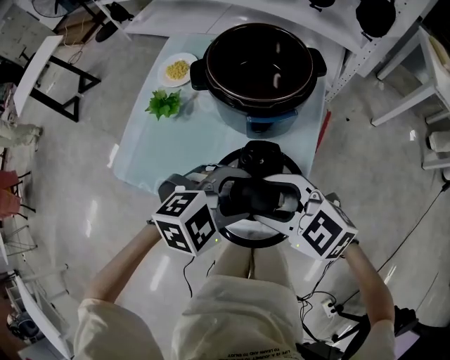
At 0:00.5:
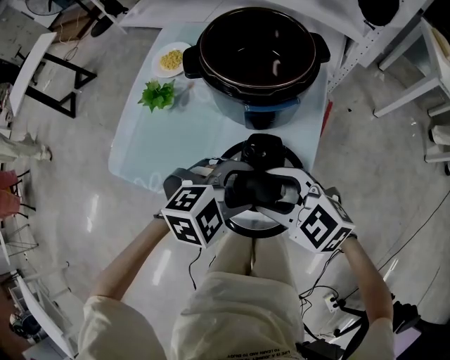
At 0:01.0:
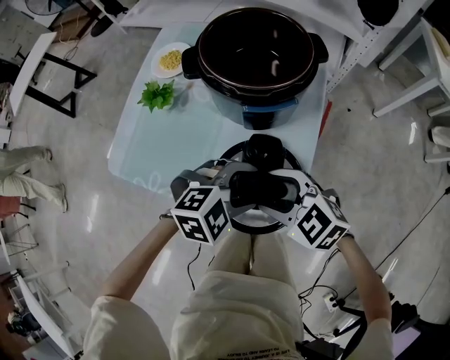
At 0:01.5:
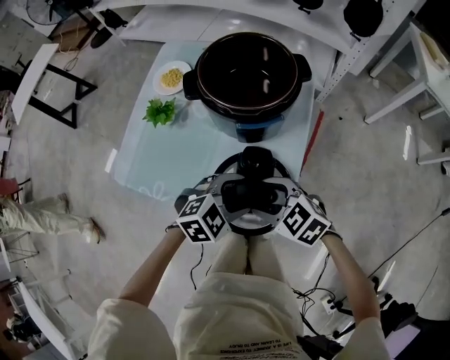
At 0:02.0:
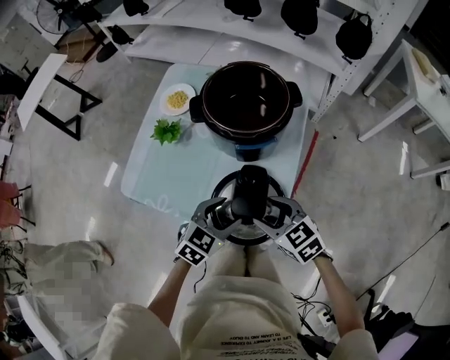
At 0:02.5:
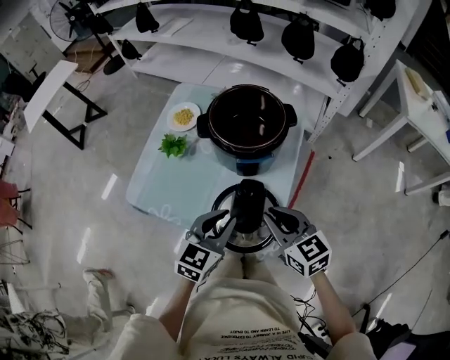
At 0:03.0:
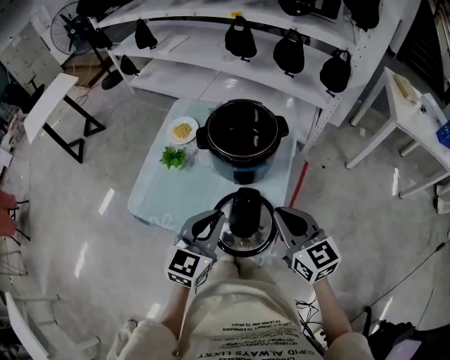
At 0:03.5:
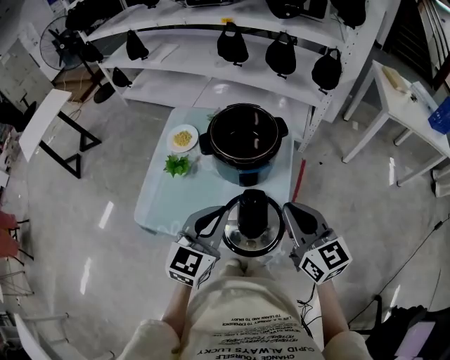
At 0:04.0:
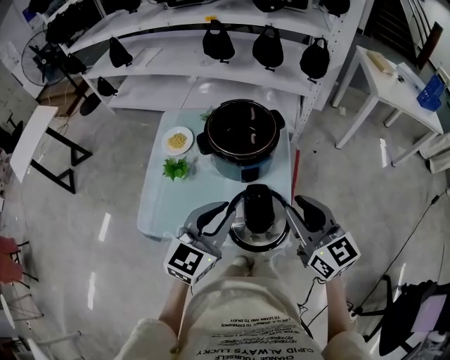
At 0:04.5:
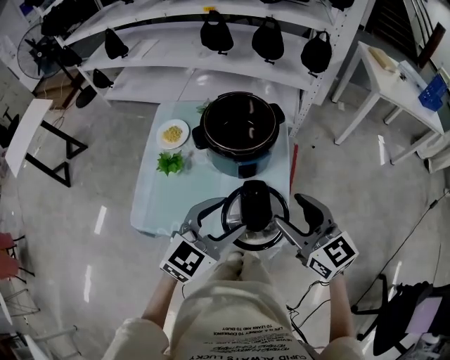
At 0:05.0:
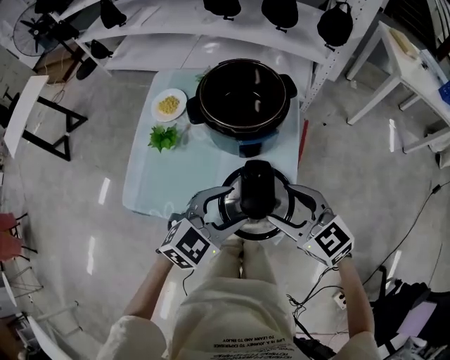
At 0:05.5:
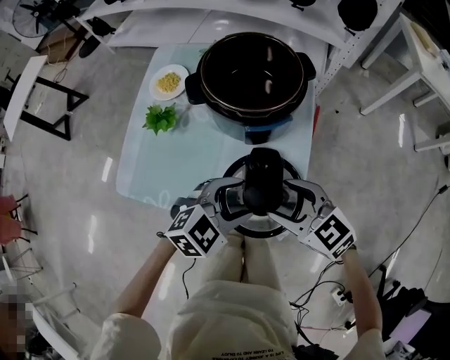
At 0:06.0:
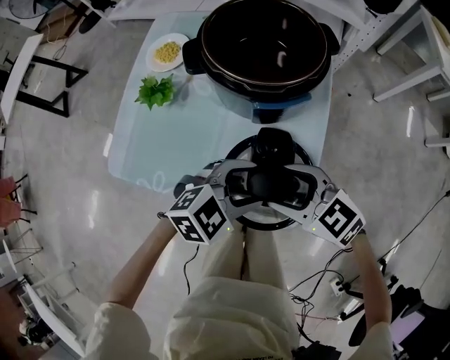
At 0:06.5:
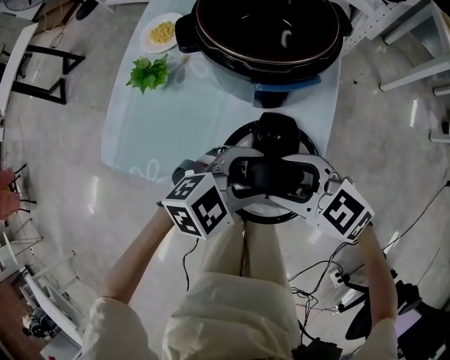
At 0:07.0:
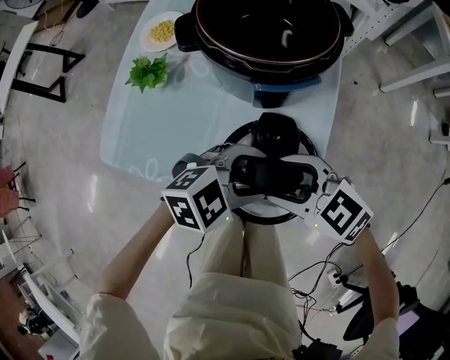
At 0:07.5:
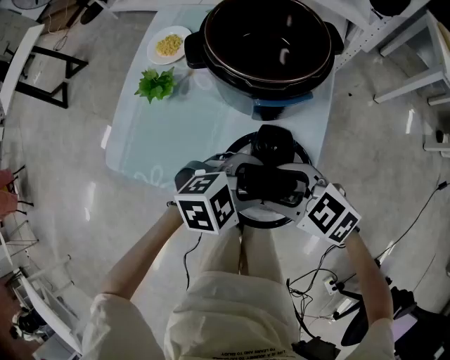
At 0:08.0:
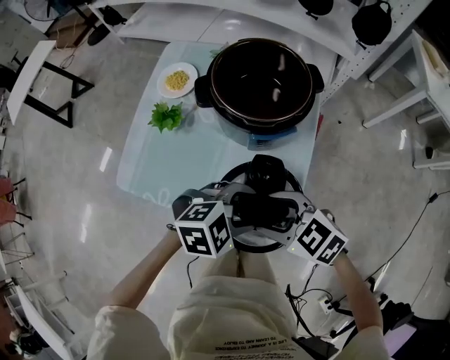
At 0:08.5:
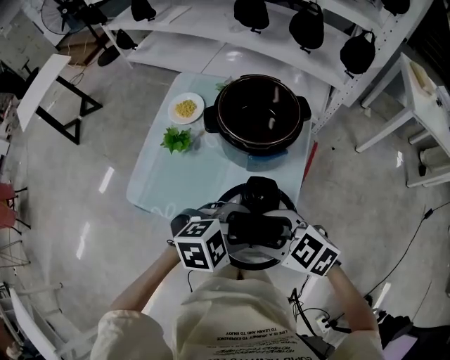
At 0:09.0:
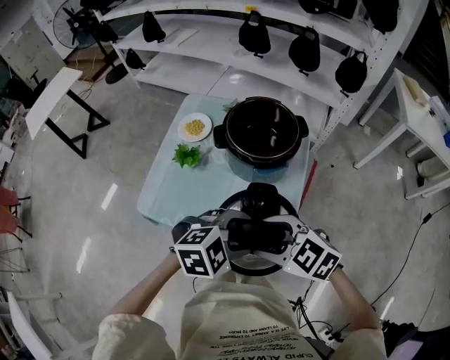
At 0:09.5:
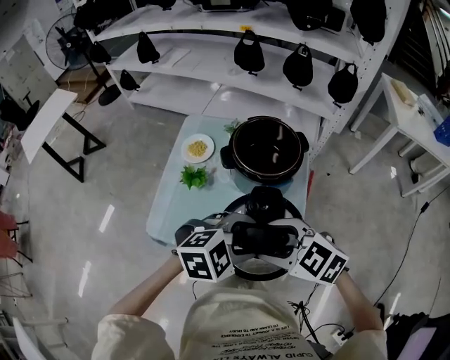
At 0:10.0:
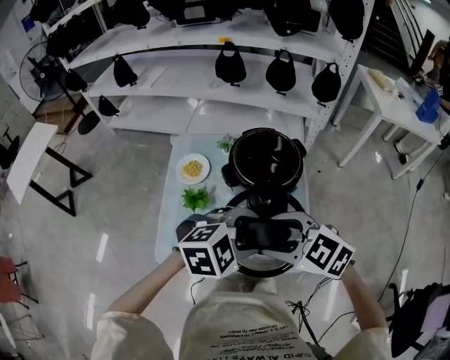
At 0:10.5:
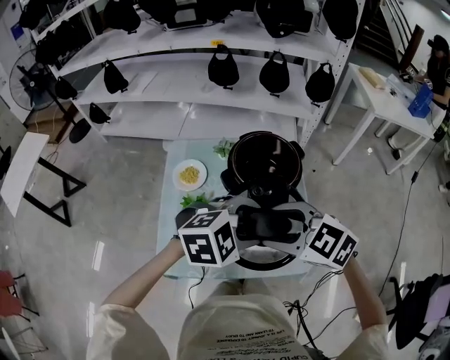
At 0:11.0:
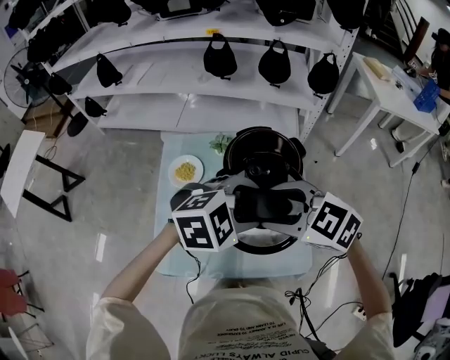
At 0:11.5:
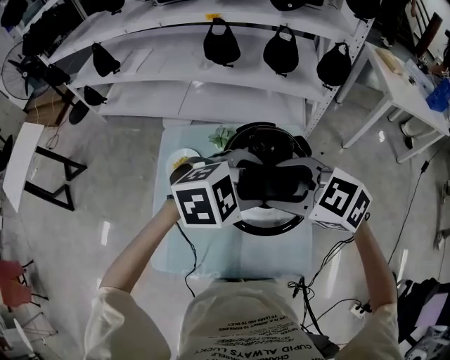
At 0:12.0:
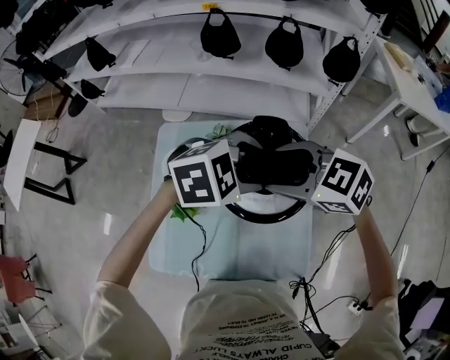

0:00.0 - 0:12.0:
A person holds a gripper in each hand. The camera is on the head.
0:00.0 - 0:02.0: Both grippers travel together downward, roughly 5 cm. The right gripper rotates about 30 degrees; the left gripper swivels about 40 degrees.
0:02.0 - 0:04.0: The two grippers go roughly 20 cm upward. The right gripper rotates approximately 40 degrees, and closes its fingers. The left gripper turns by roughly 30 degrees, and closes up.
0:04.0 - 0:06.0: Both grippers move downward, some 20 cm. The right gripper rotates about 50 degrees, and opens its fingers. The left gripper rotates approximately 40 degrees, and opens its fingers.
0:06.0 - 0:08.0: The grippers make only small movements.
0:08.0 - 0:10.0: Both grippers travel together upward, roughly 15 cm.
0:10.0 - 0:12.0: The left gripper ends up roughly 25 cm from where it was; the right gripper ends up about 25 cm from where it was.

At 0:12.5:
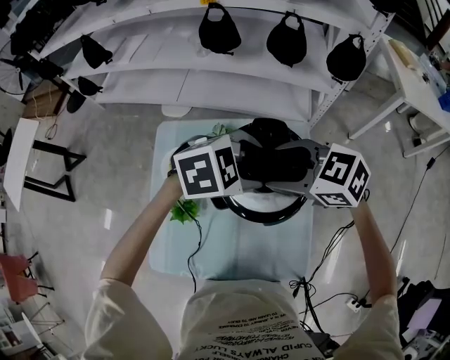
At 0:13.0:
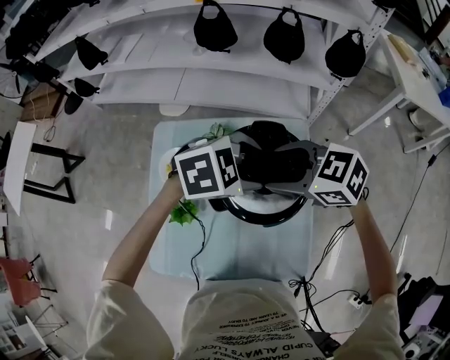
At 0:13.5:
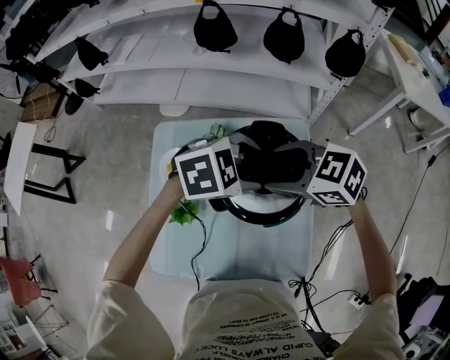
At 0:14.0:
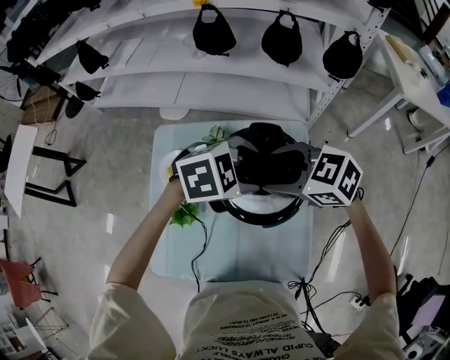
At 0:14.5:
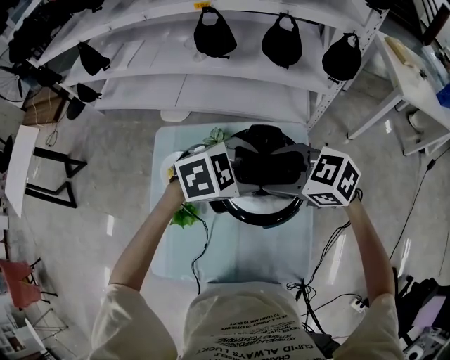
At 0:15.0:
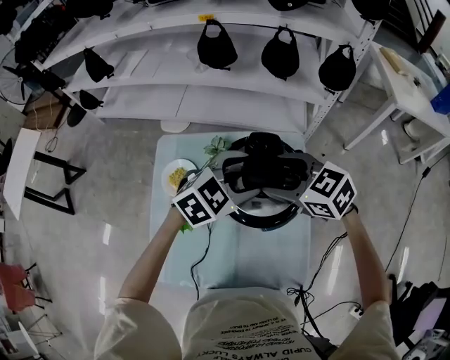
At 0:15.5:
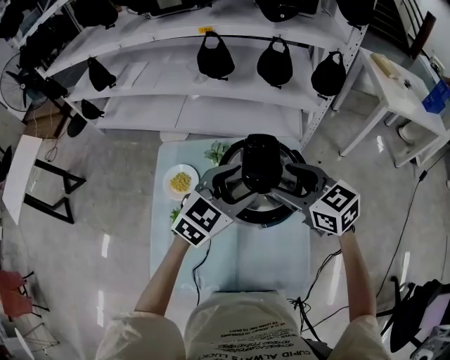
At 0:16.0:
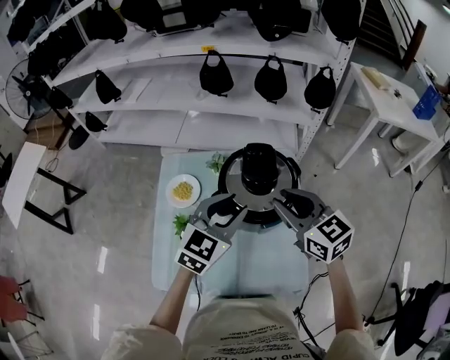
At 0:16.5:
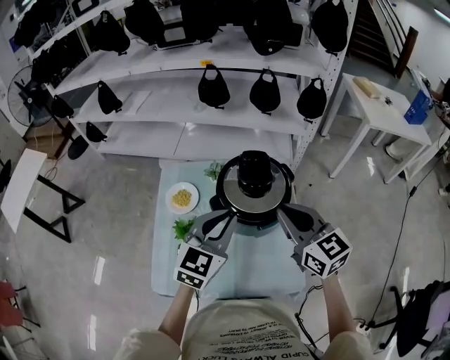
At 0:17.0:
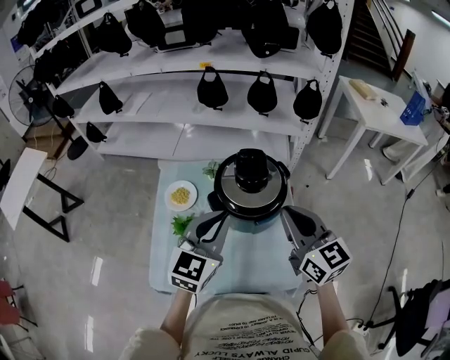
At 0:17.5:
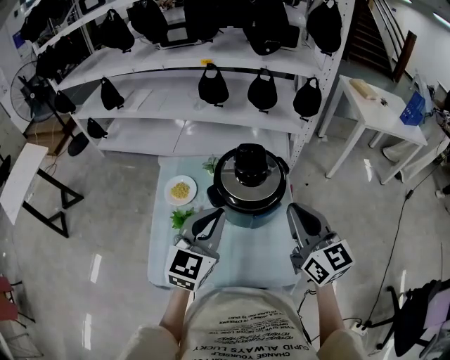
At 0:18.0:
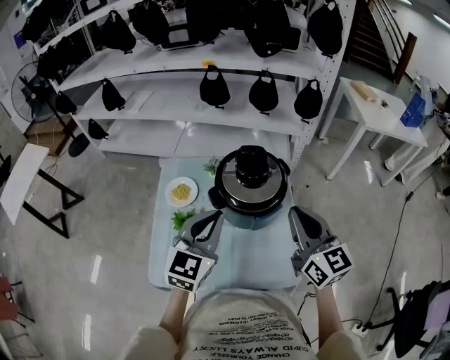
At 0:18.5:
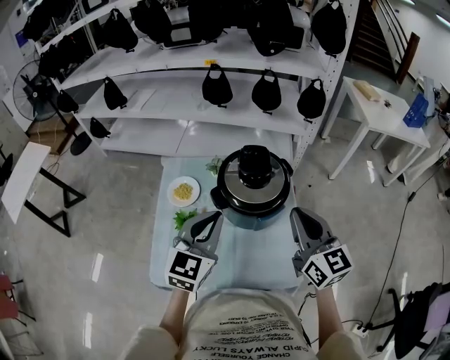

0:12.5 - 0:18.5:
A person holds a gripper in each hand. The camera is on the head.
0:12.5 - 0:14.5: There are only small adjustments of the grippers.
0:14.5 - 0:16.5: The left gripper moves approximately 15 cm, tilts its fingers roughly 30 degrees upward, and closes. The right gripper changes place by approximately 15 cm, changes its angle by some 50 degrees, and closes up.
0:16.5 - 0:18.5: The right gripper changes place by approximately 5 cm.

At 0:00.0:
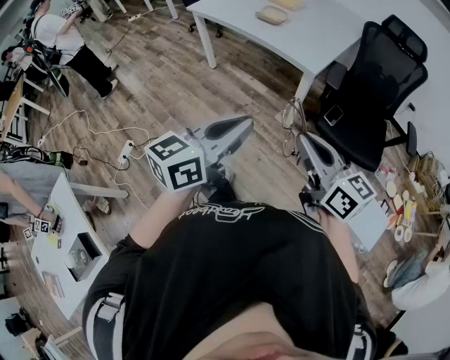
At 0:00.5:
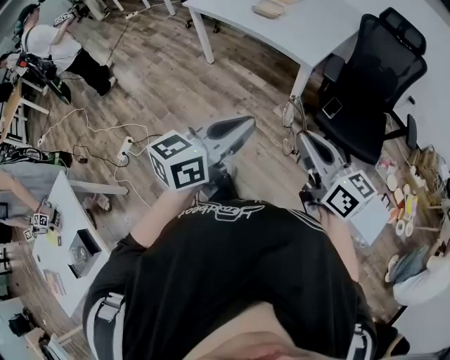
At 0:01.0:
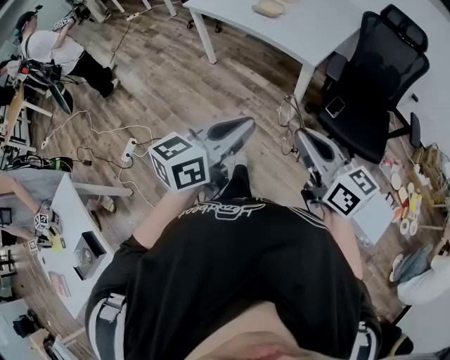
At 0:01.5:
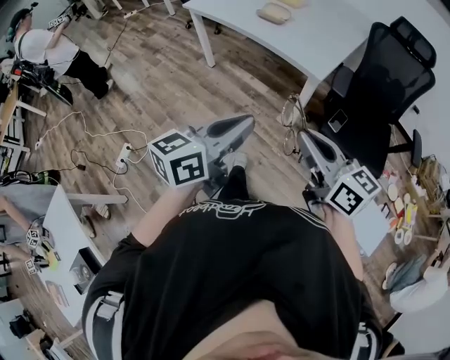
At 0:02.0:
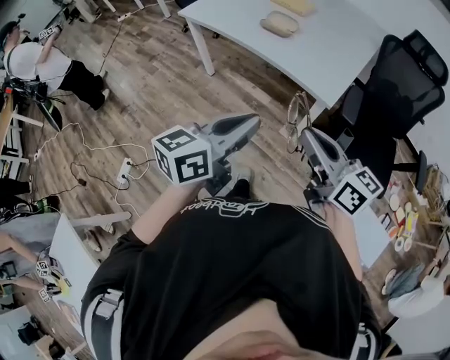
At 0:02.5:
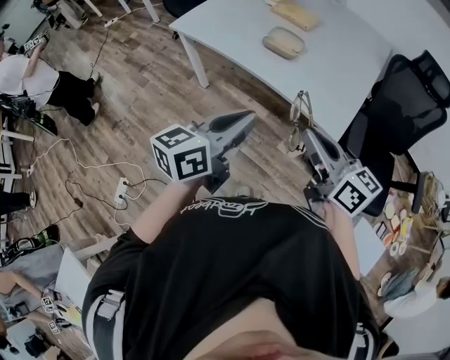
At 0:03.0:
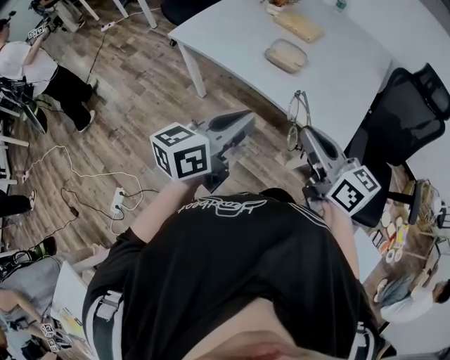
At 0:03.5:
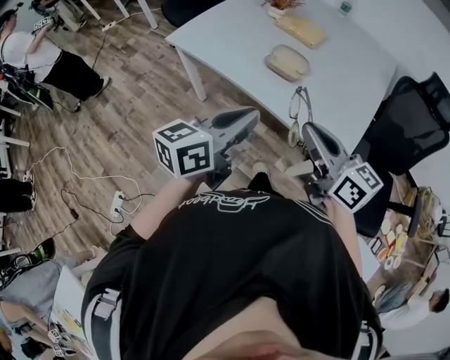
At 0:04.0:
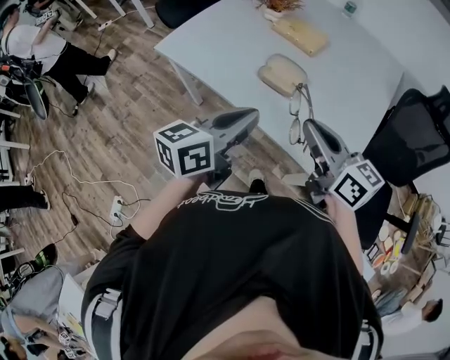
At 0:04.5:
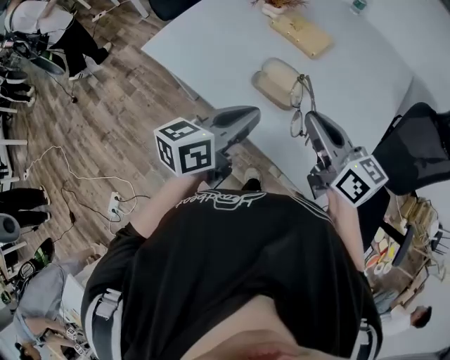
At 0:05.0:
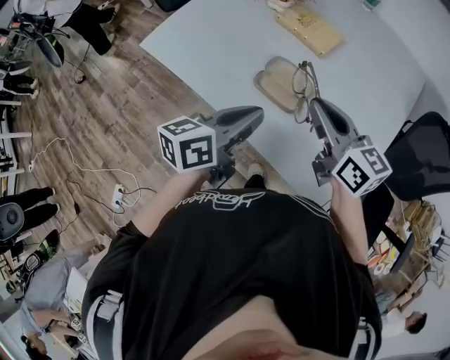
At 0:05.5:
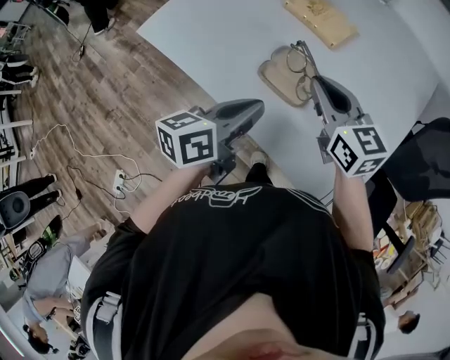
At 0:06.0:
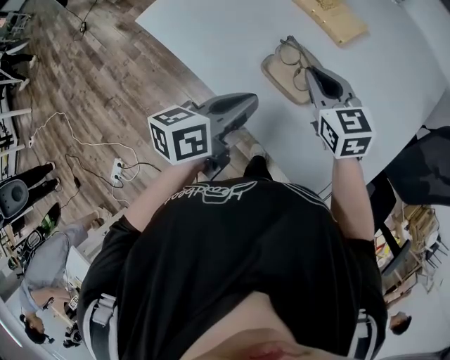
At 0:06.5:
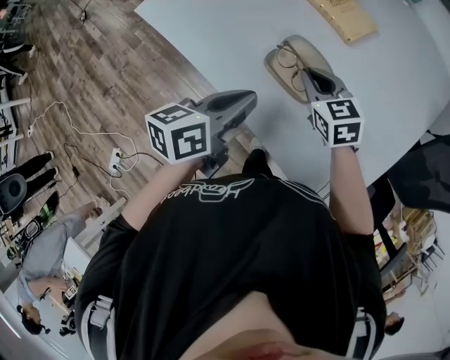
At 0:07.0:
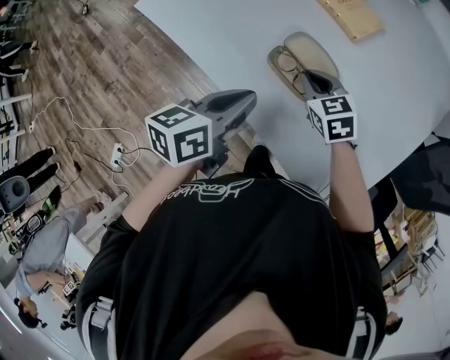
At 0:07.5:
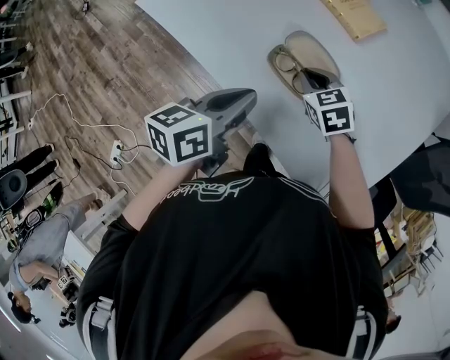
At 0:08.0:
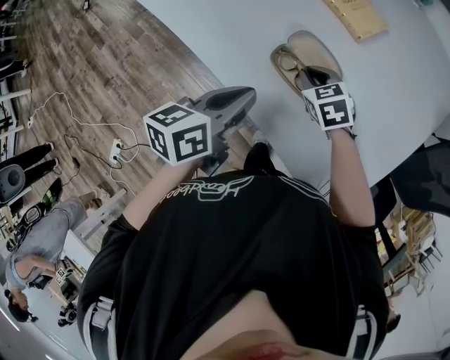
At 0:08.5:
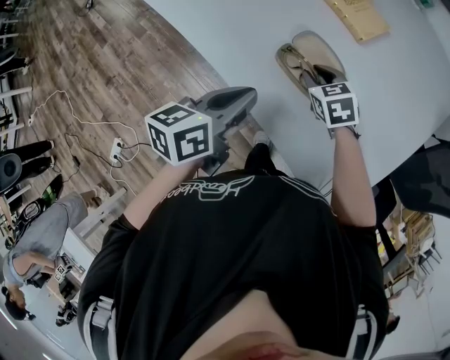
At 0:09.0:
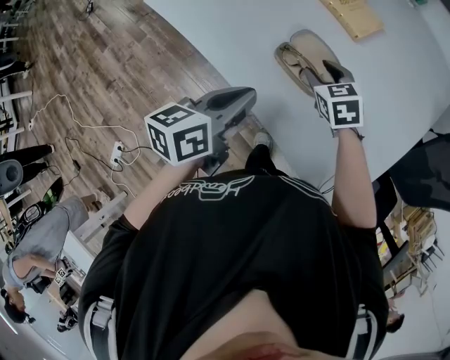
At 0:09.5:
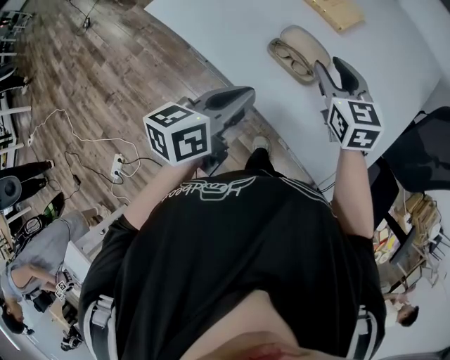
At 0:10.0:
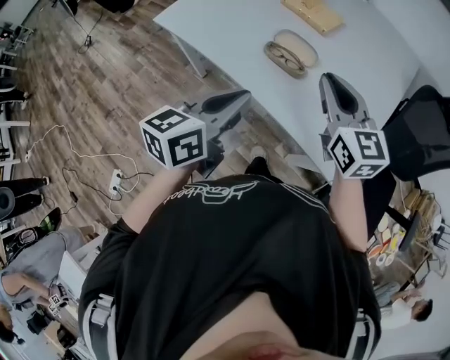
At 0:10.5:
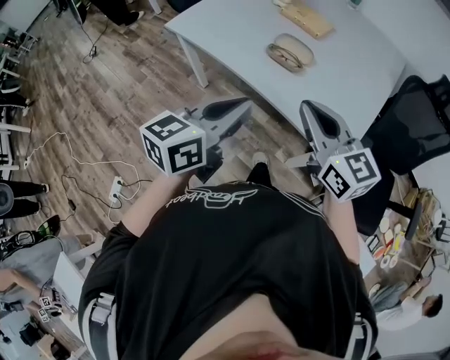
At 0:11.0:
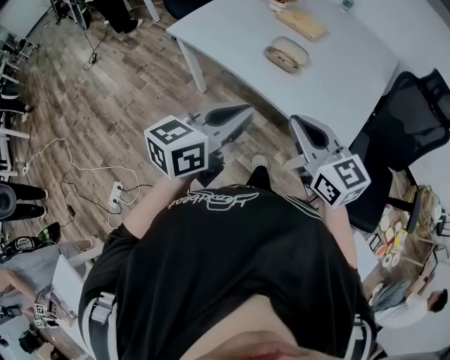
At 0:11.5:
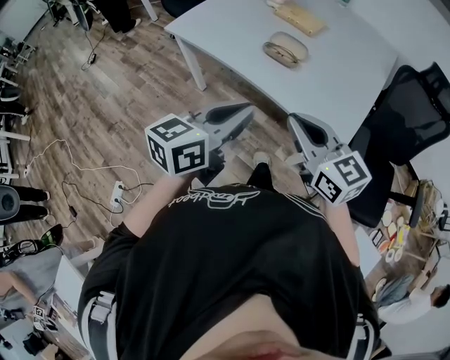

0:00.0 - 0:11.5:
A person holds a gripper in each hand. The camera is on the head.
0:00.0 - 0:02.0: The two grippers go some 25 cm forward.
0:02.0 - 0:04.0: The grippers both shift forward by roughly 40 cm.
0:04.0 - 0:06.0: The grippers both shift forward and downward by approximately 25 cm. The right gripper rotates roughly 30 degrees.
0:06.0 - 0:07.5: The right gripper moves downward, approximately 15 cm, and swivels approximately 20 degrees.
0:07.5 - 0:09.5: The right gripper goes about 15 cm upward, turns by about 30 degrees, and opens, while the left gripper is displaced backward and upward by approximately 10 cm.
0:09.5 - 0:11.5: The left gripper shifts some 25 cm backward and upward, while the right gripper goes about 35 cm backward, and closes.
